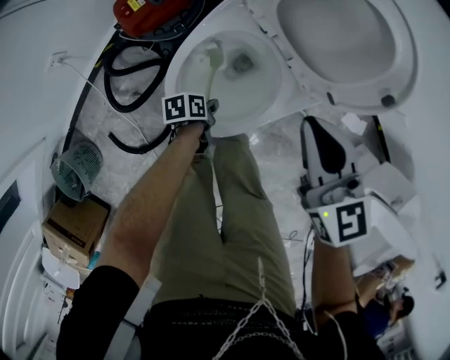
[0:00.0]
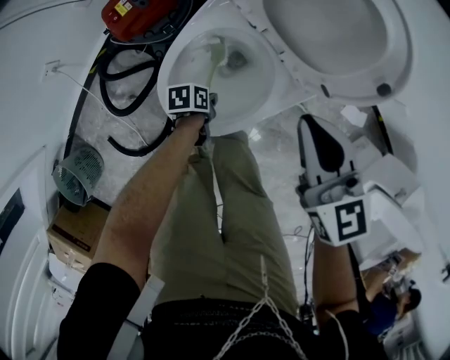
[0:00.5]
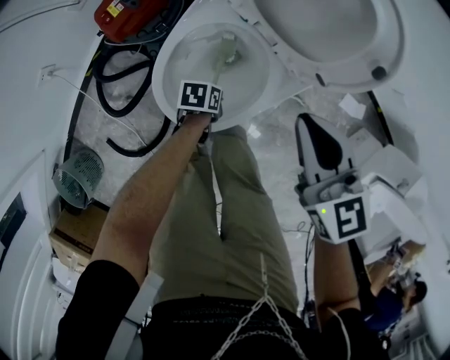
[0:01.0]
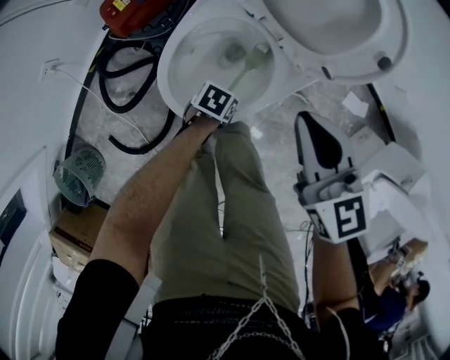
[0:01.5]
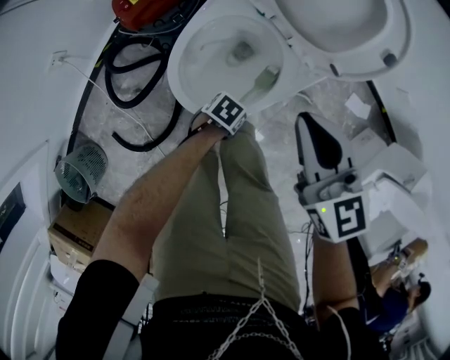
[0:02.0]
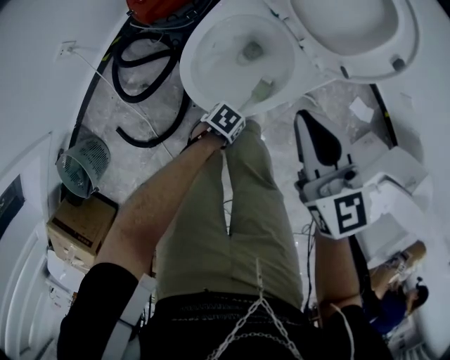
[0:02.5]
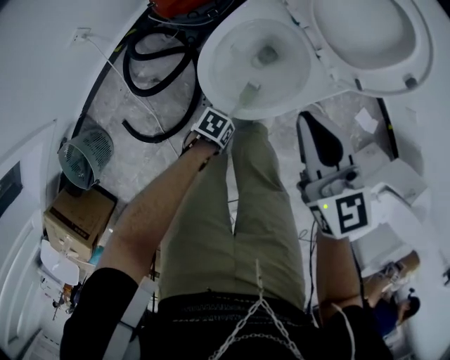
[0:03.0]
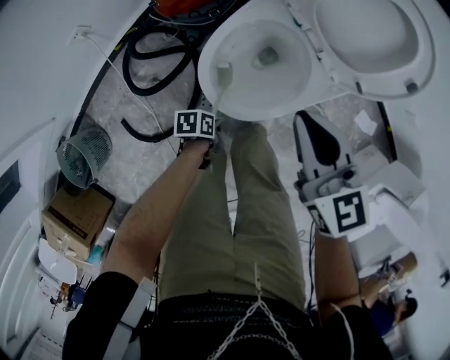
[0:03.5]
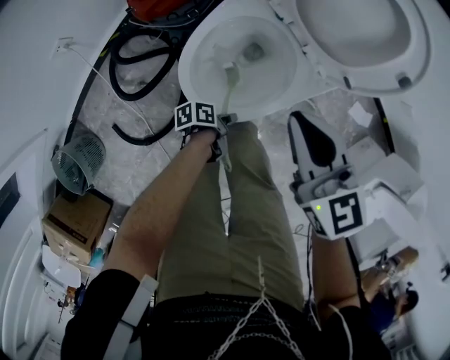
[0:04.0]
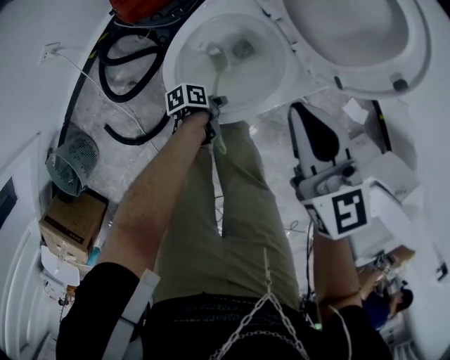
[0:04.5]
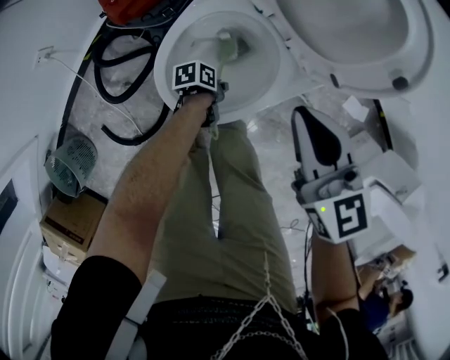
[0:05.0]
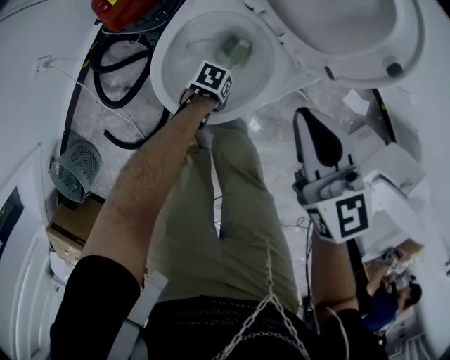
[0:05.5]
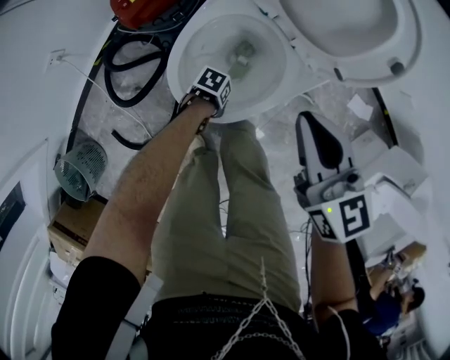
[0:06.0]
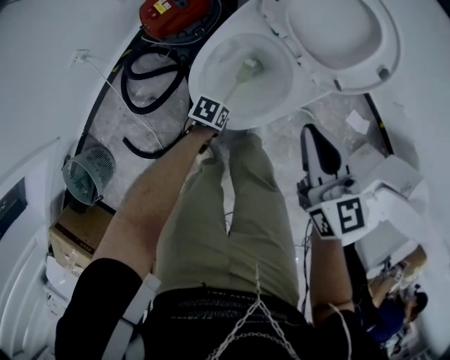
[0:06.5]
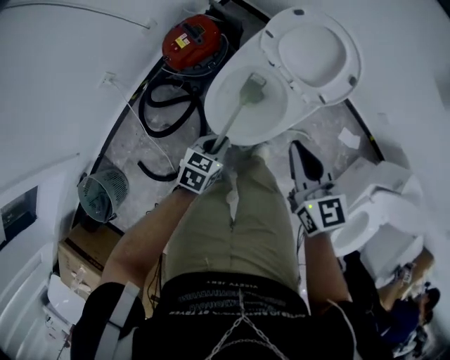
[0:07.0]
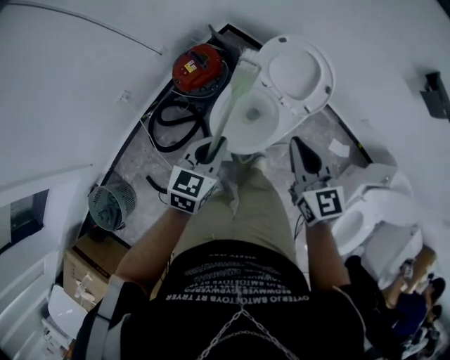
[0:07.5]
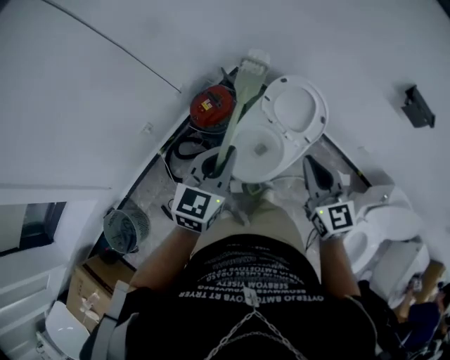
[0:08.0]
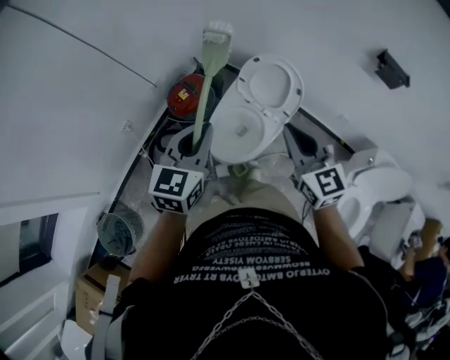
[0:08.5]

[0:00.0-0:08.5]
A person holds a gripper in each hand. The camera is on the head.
0:00.0 to 0:02.0: The left gripper ends up roughly 10 cm from where it was, and rotates around the line of its fingers by about 50 degrees, clockwise from behind, while the right gripper moves approximately 5 cm.
0:02.0 to 0:04.0: The left gripper rolls counterclockwise, seen from behind, by approximately 60 degrees.
0:04.0 to 0:06.5: The left gripper moves approximately 5 cm downward and comes back, and rotates around the line of its fingers by approximately 50 degrees, clockwise from behind.
0:06.5 to 0:08.5: The right gripper goes some 35 cm upward, and changes its angle by roughly 30 degrees. Meanwhile the left gripper heads upward, covering some 70 cm, and points its fingers some 50 degrees further upward.

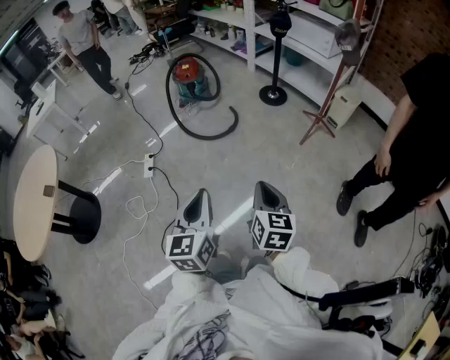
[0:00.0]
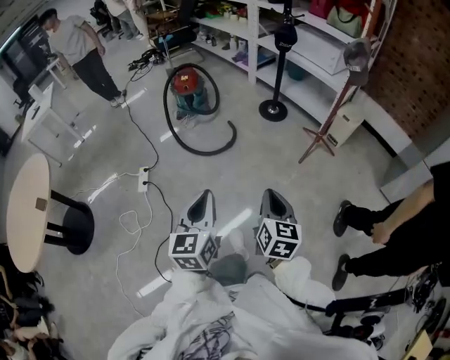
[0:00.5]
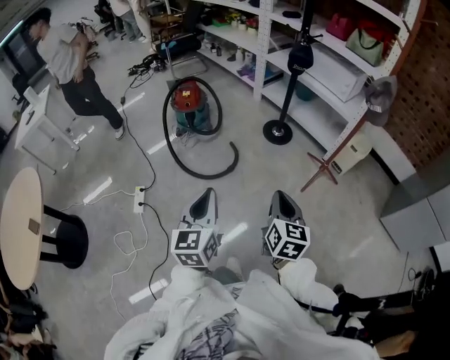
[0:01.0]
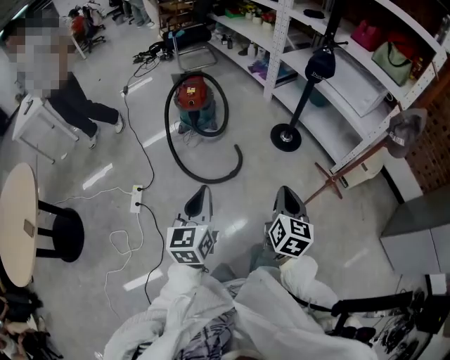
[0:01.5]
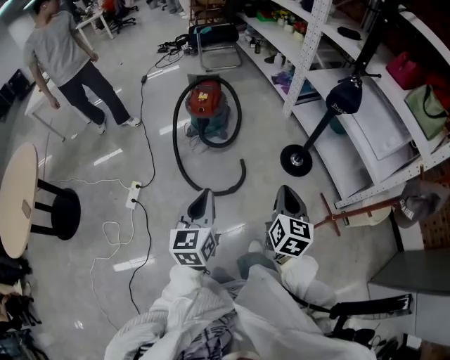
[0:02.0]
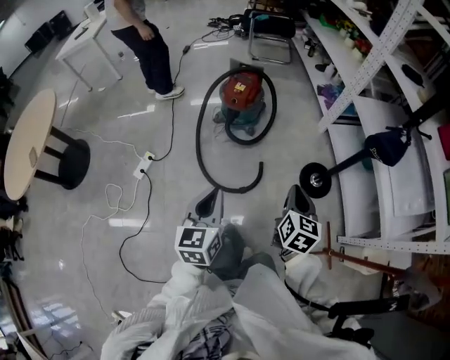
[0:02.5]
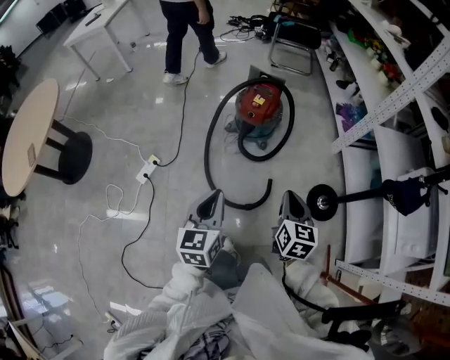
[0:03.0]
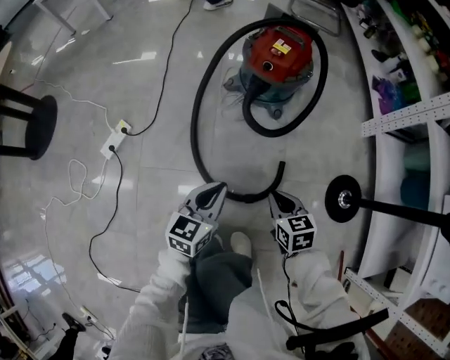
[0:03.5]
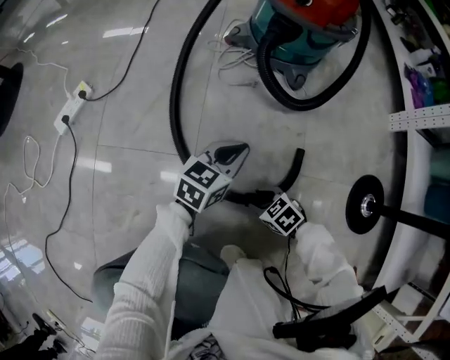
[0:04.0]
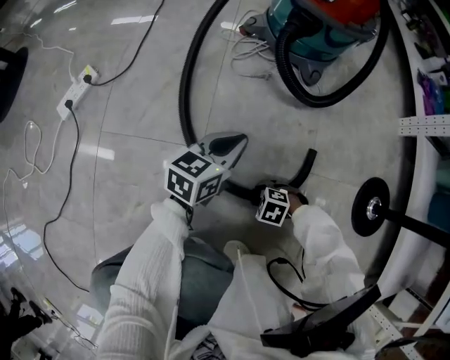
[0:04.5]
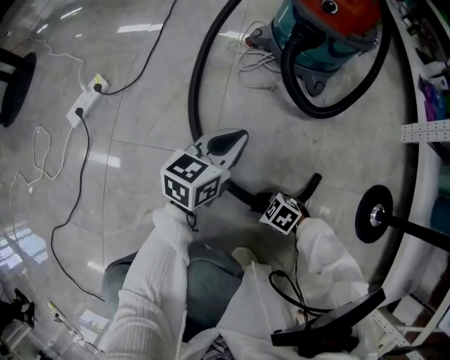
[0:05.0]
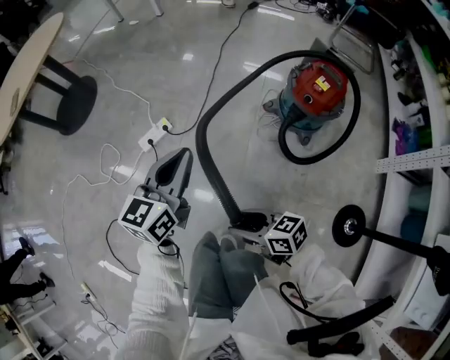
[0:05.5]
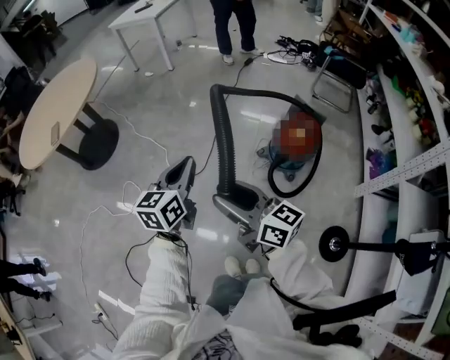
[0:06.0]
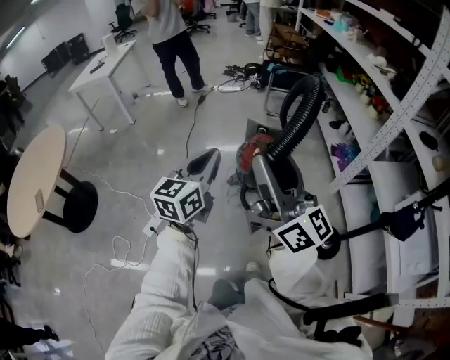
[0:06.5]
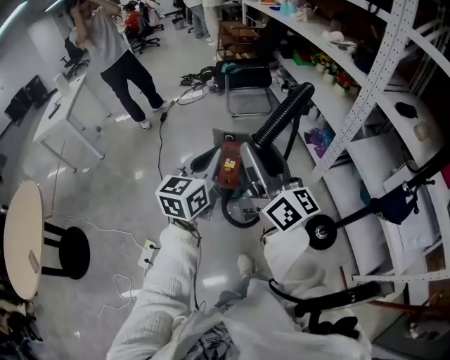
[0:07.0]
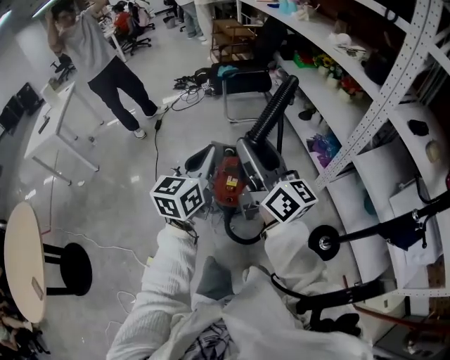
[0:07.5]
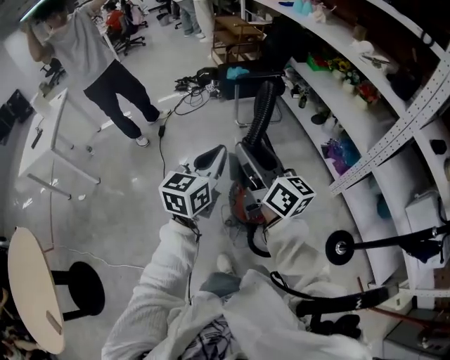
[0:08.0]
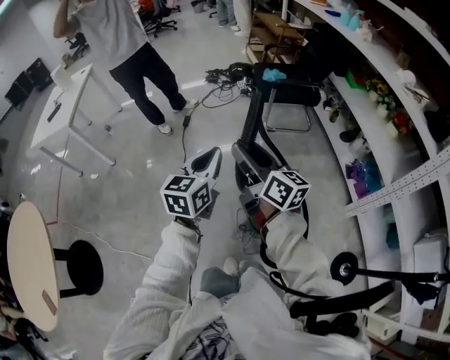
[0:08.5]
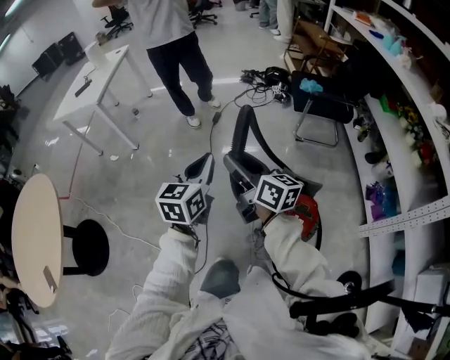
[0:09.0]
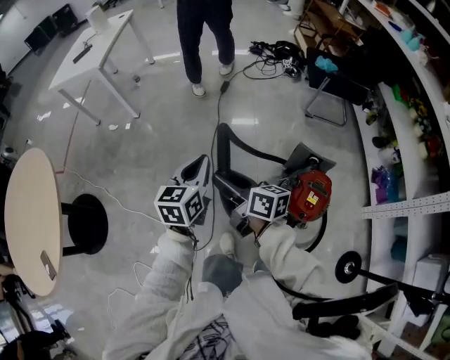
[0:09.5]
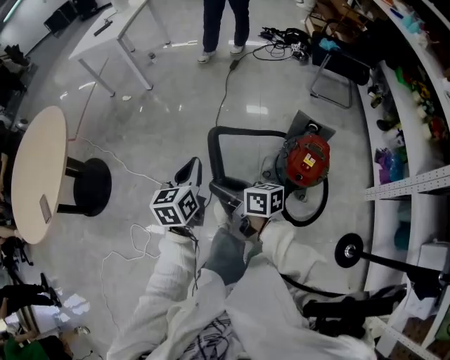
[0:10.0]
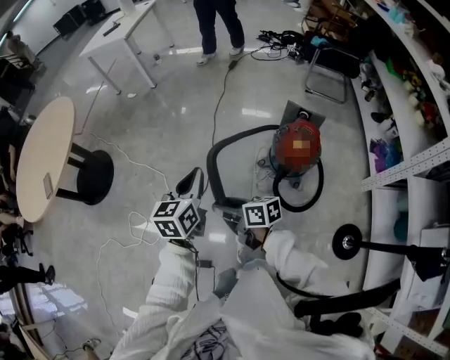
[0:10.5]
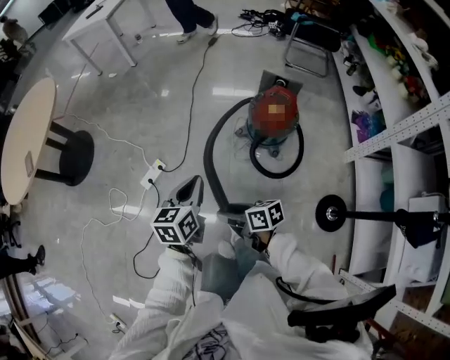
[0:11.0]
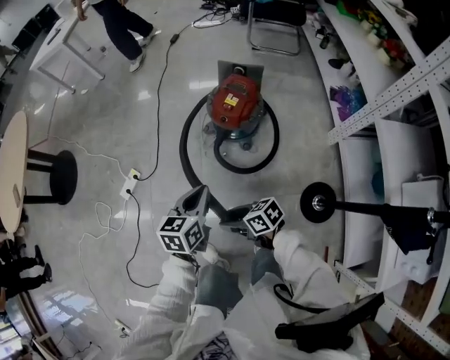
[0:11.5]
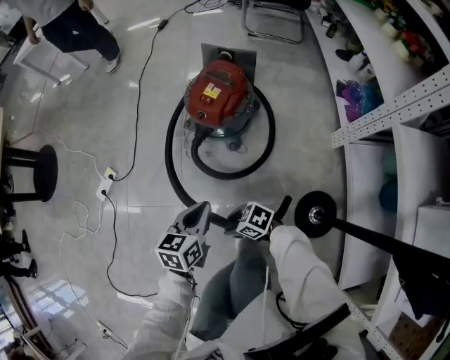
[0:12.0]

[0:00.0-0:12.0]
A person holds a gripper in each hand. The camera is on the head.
0:00.0 to 0:02.0: The pair of grippers is taken forward, roughly 70 cm.
0:02.0 to 0:04.0: The grippers both shift downward by roughly 80 cm. The right gripper points its fingers roughly 40 degrees further downward, and opens its fingers.
0:04.0 to 0:06.0: Both grippers travel together upward, approximately 90 cm. The left gripper changes its angle by approximately 40 degrees. The right gripper points its fingers approximately 70 degrees further upward.
0:06.0 to 0:08.0: The two grippers travel together, approximately 60 cm. The right gripper rotates approximately 60 degrees. The left gripper rotates roughly 50 degrees.
0:08.0 to 0:10.0: The pair of grippers is taken roughly 40 cm. The left gripper rotates approximately 50 degrees; the right gripper changes its angle by approximately 60 degrees.
0:10.0 to 0:12.0: The two grippers travel together, some 60 cm. The right gripper rotates approximately 60 degrees, while the left gripper changes its angle by approximately 20 degrees.

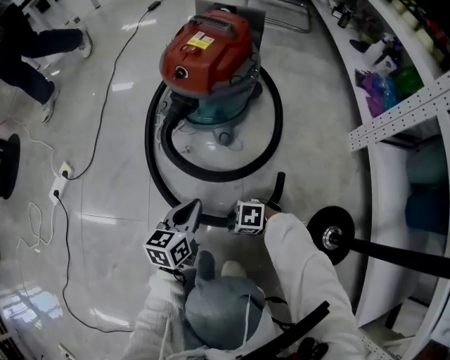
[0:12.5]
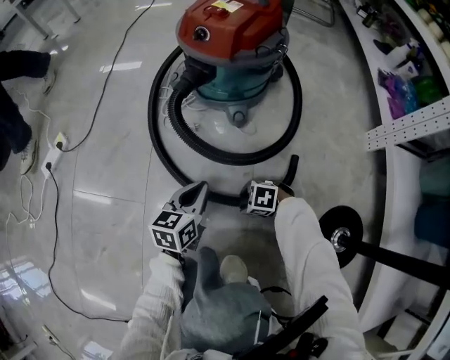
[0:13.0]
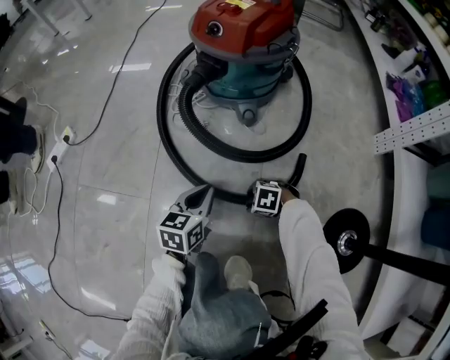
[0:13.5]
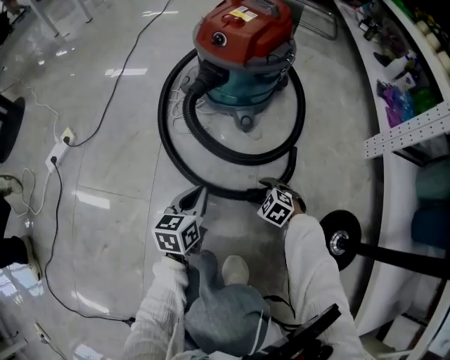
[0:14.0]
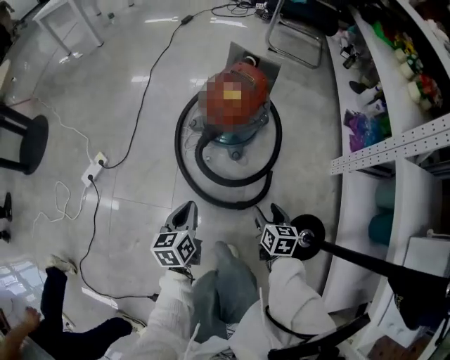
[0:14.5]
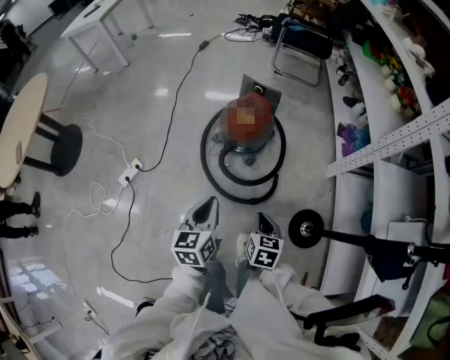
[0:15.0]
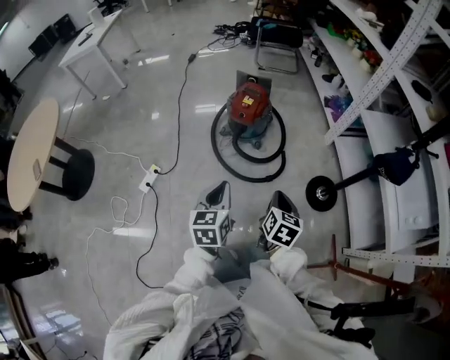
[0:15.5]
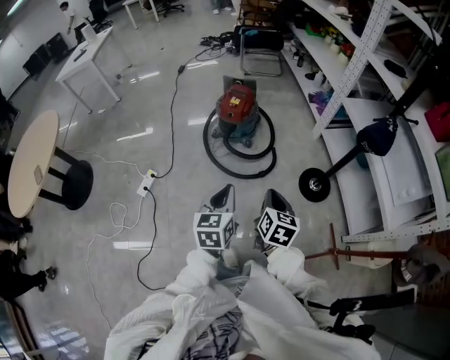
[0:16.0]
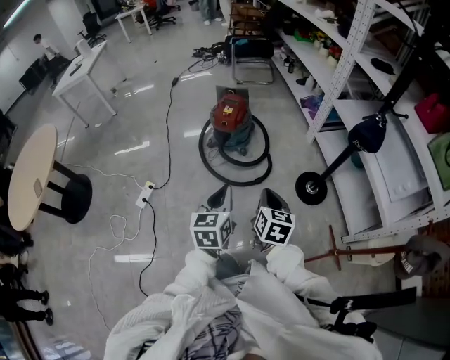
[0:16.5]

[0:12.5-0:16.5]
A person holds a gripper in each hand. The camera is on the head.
0:12.5 to 0:14.5: Both grippers move upward, roughly 30 cm. The left gripper turns by about 20 degrees; the right gripper swivels some 90 degrees.
0:14.5 to 0:16.5: Both grippers travel together upward and backward, some 60 cm. The left gripper changes its angle by approximately 30 degrees; the right gripper rotates about 30 degrees, and closes.

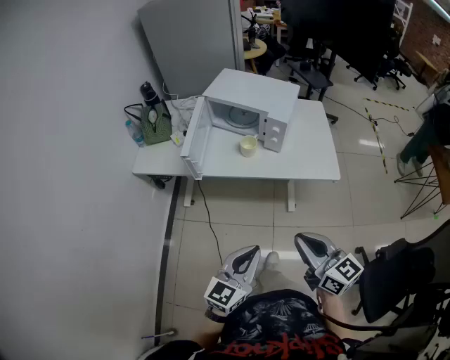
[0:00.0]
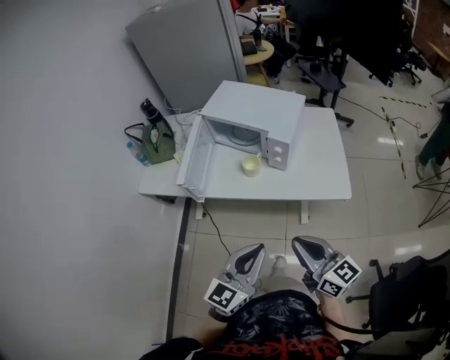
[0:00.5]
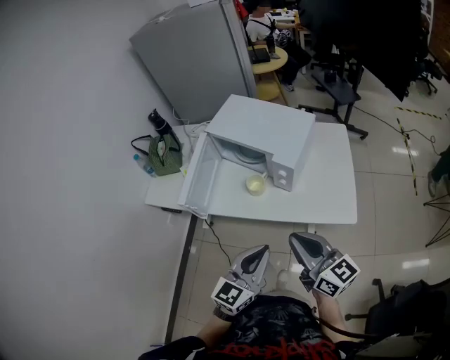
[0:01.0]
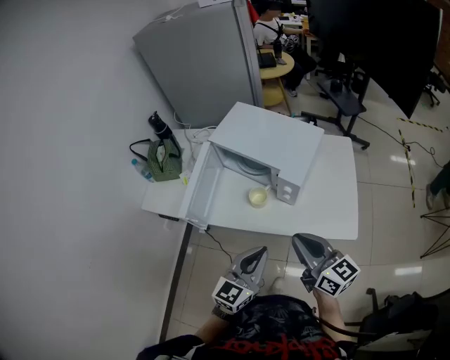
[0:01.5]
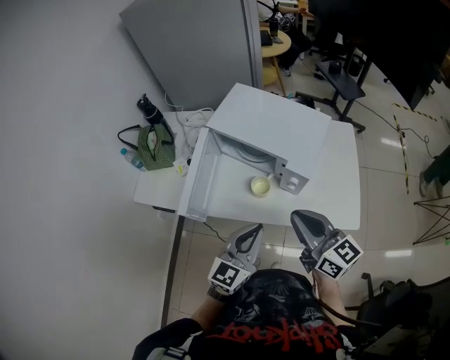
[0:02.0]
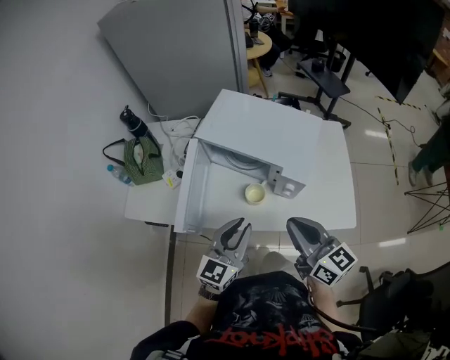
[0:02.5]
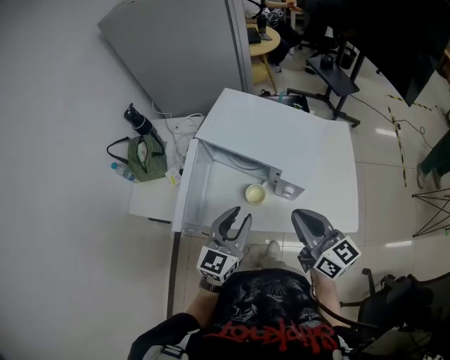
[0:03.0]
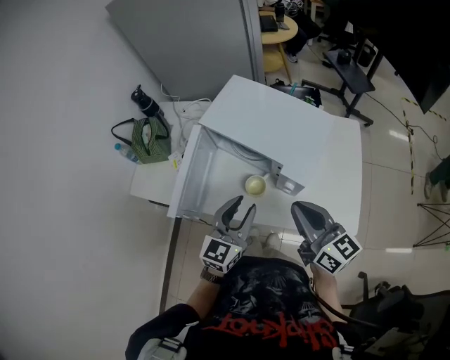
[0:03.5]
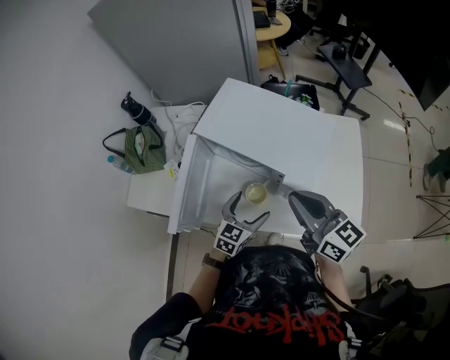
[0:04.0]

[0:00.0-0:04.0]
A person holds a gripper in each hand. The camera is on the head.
0:00.0 to 0:02.0: The grippers both shift forward by some 35 cm.
0:02.0 to 0:04.0: The left gripper travels downward and forward by some 25 cm, changes its angle by roughly 20 degrees, and opens up, while the right gripper moves forward, some 15 cm.
